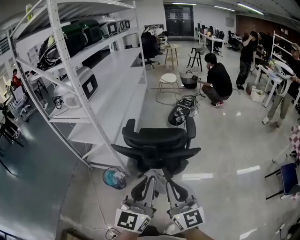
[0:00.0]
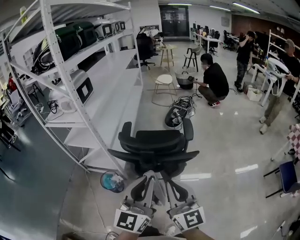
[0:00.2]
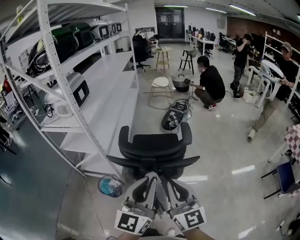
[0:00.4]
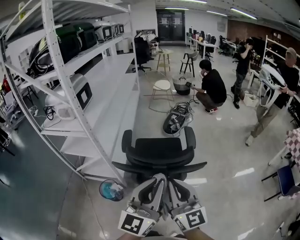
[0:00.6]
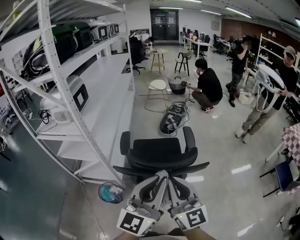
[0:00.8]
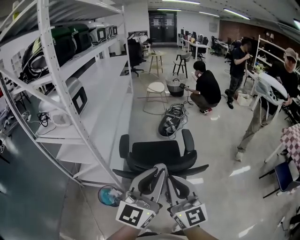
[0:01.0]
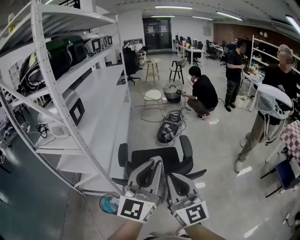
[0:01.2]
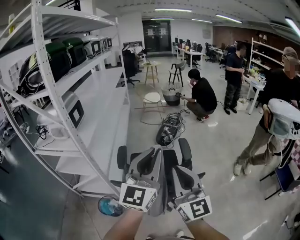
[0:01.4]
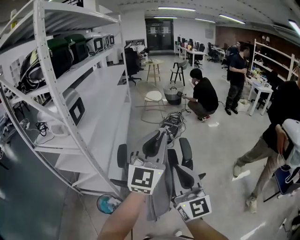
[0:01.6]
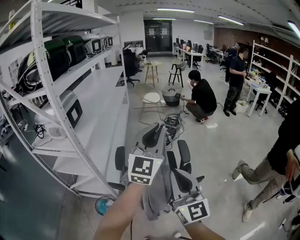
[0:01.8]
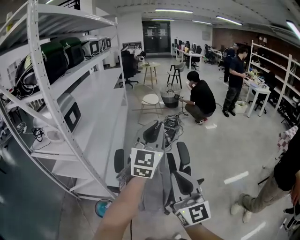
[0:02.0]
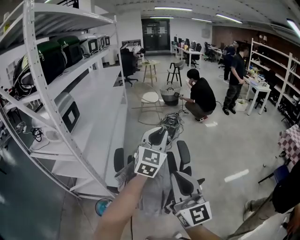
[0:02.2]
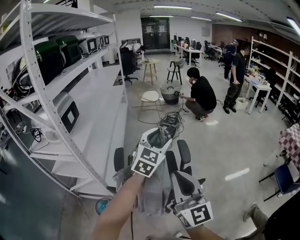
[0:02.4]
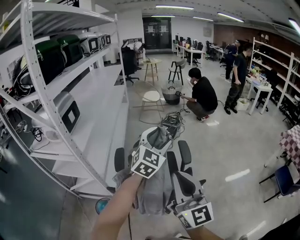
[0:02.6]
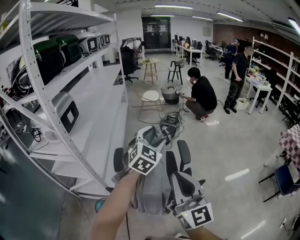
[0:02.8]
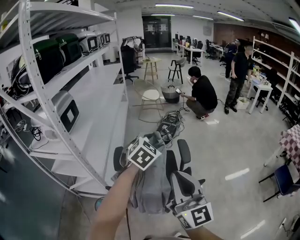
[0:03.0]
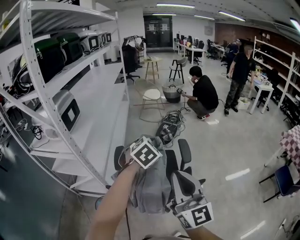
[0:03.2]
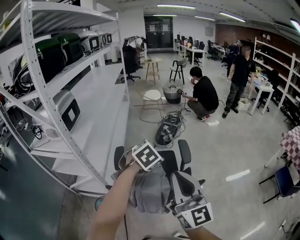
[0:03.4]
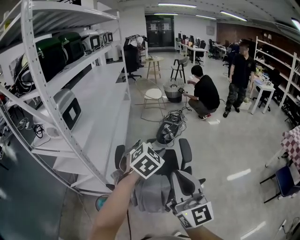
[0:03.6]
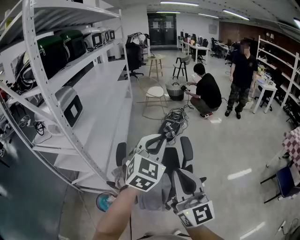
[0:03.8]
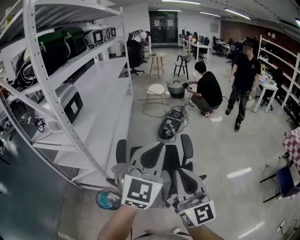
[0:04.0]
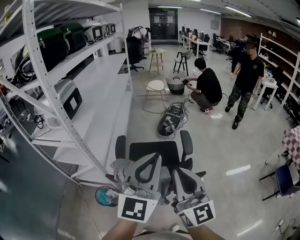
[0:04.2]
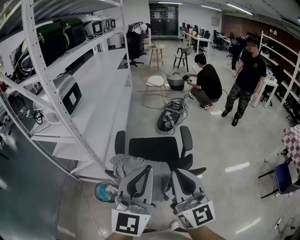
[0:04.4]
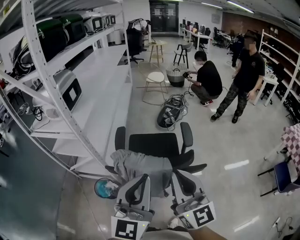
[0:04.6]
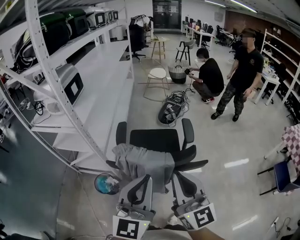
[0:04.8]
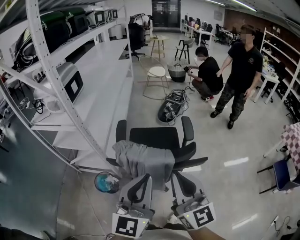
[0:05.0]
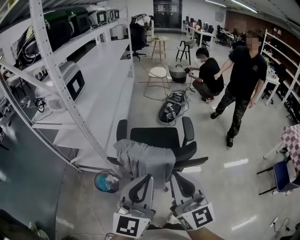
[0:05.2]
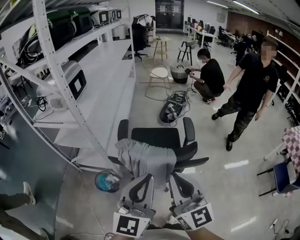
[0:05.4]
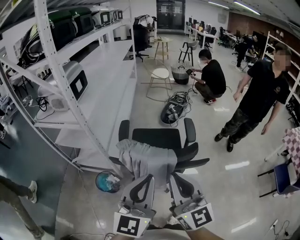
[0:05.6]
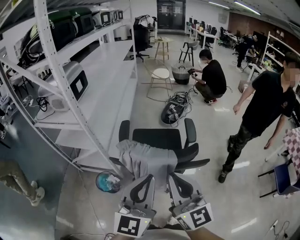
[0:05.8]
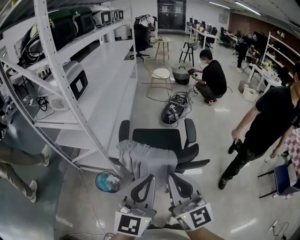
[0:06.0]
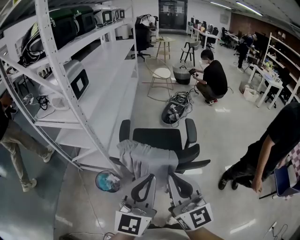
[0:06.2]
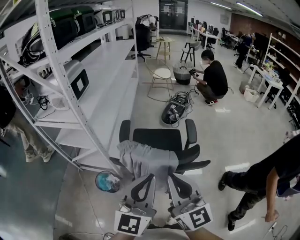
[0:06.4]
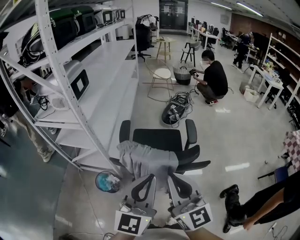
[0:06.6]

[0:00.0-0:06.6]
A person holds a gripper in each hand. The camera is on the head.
0:00.0 to 0:01.6: The two grippers go approximately 25 cm forward and upward.
0:01.6 to 0:03.2: The left gripper is displaced downward and forward by roughly 20 cm, points its fingers some 60 degrees further downward, and opens up.
0:03.2 to 0:05.0: The right gripper shifts approximately 10 cm backward. Meanwhile the left gripper moves backward, approximately 25 cm, angles its fingers upward, by roughly 50 degrees, and closes its fingers.
0:05.0 to 0:06.6: The grippers stay close to where they were, moving slightly.

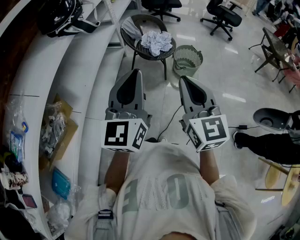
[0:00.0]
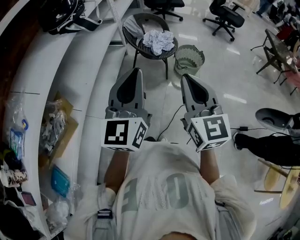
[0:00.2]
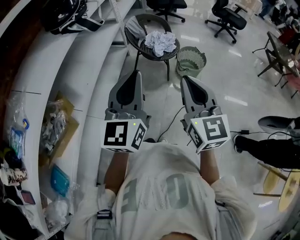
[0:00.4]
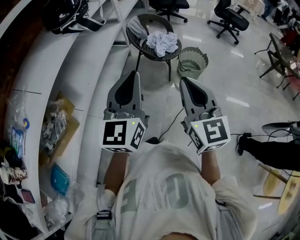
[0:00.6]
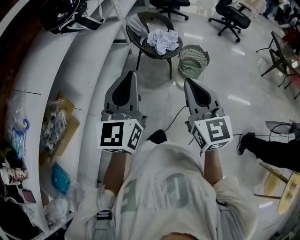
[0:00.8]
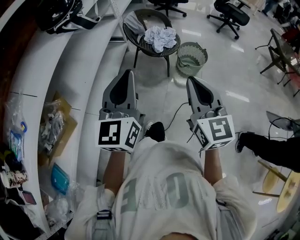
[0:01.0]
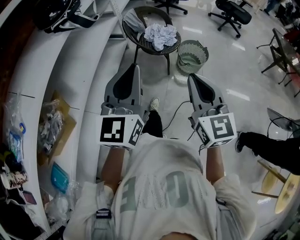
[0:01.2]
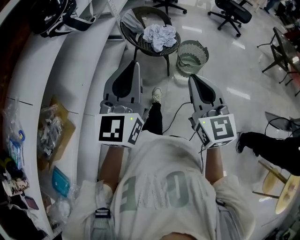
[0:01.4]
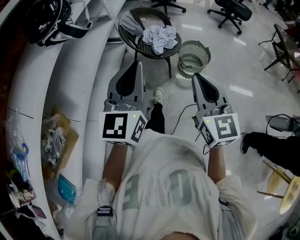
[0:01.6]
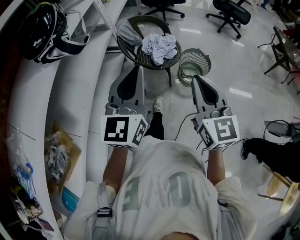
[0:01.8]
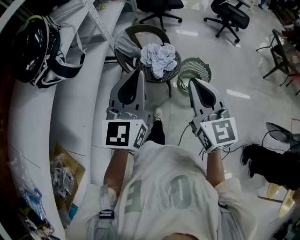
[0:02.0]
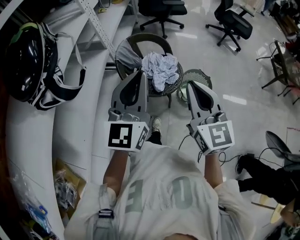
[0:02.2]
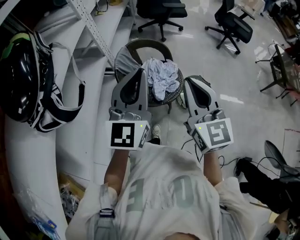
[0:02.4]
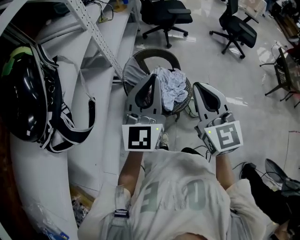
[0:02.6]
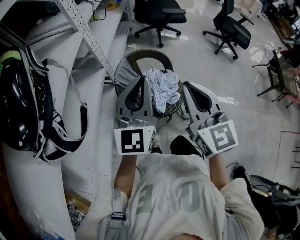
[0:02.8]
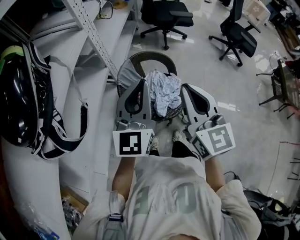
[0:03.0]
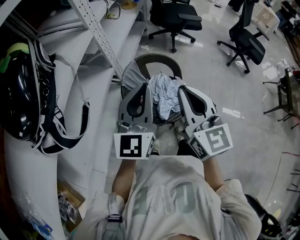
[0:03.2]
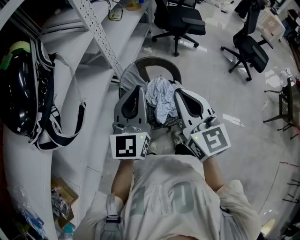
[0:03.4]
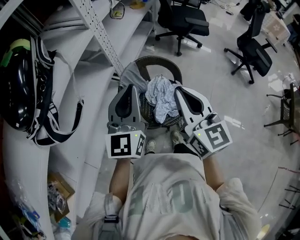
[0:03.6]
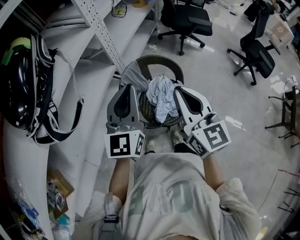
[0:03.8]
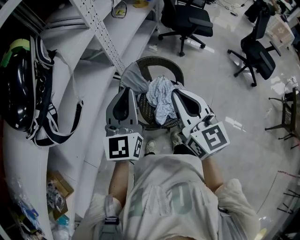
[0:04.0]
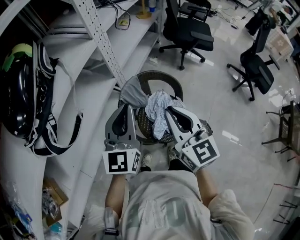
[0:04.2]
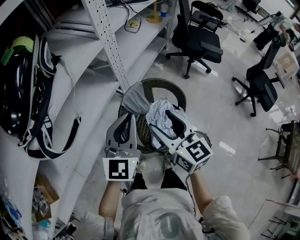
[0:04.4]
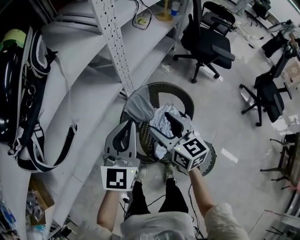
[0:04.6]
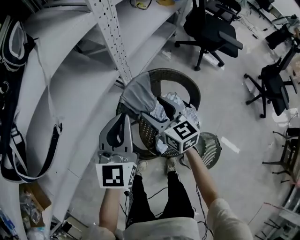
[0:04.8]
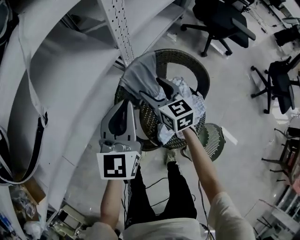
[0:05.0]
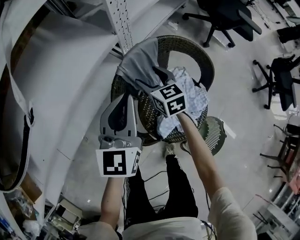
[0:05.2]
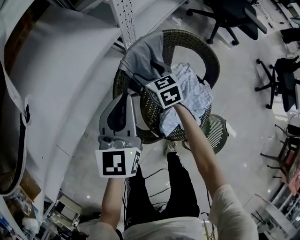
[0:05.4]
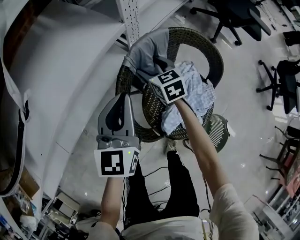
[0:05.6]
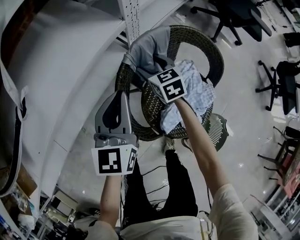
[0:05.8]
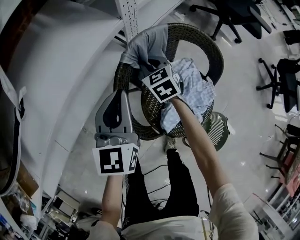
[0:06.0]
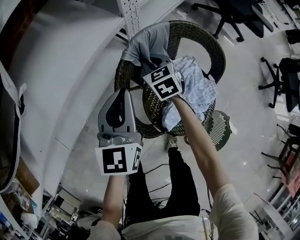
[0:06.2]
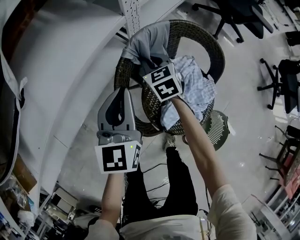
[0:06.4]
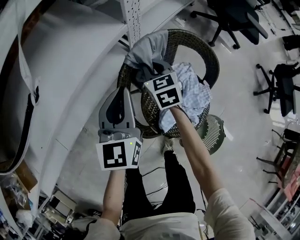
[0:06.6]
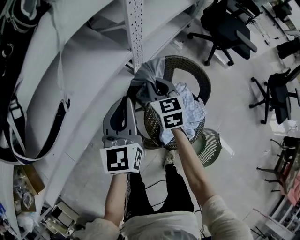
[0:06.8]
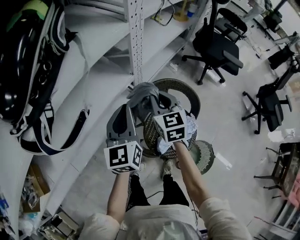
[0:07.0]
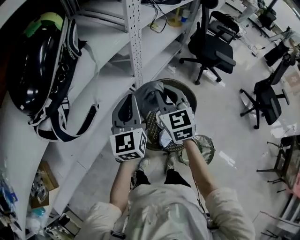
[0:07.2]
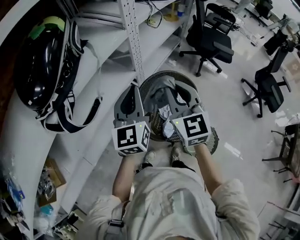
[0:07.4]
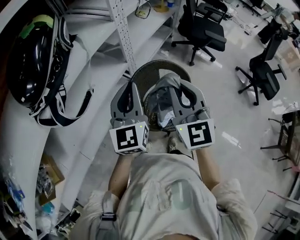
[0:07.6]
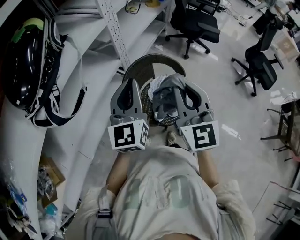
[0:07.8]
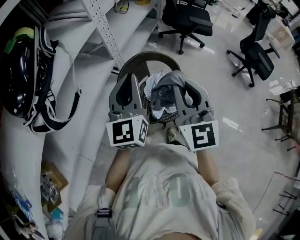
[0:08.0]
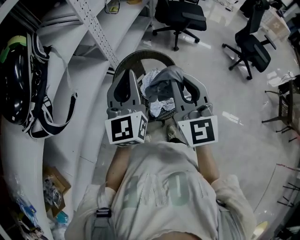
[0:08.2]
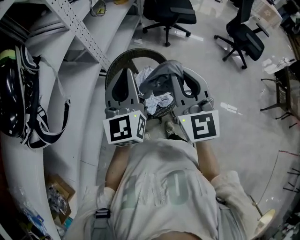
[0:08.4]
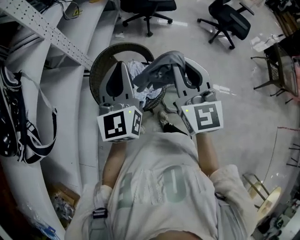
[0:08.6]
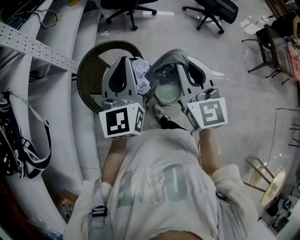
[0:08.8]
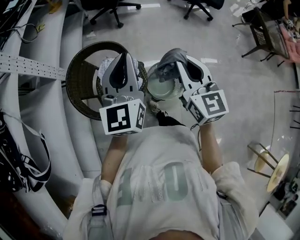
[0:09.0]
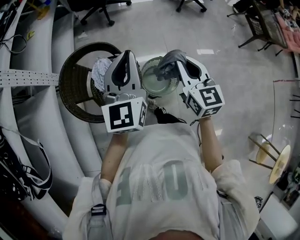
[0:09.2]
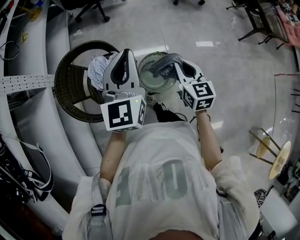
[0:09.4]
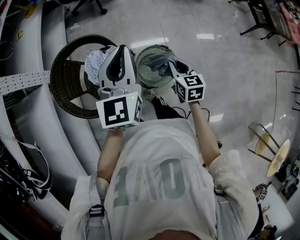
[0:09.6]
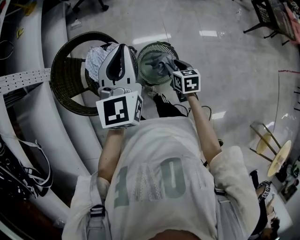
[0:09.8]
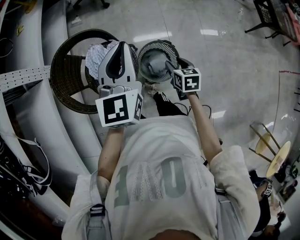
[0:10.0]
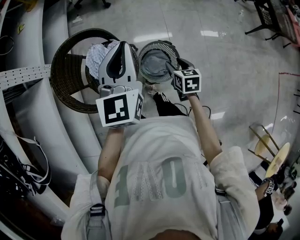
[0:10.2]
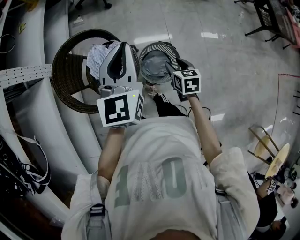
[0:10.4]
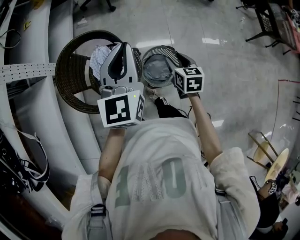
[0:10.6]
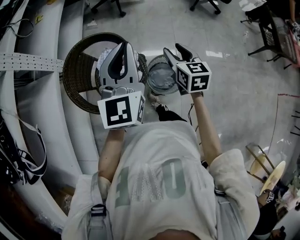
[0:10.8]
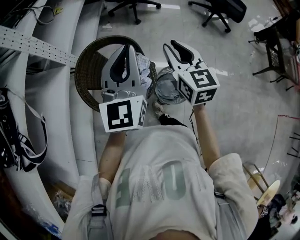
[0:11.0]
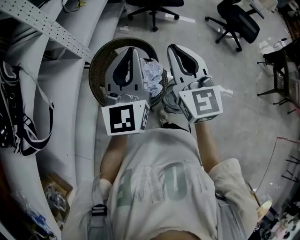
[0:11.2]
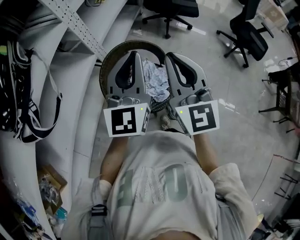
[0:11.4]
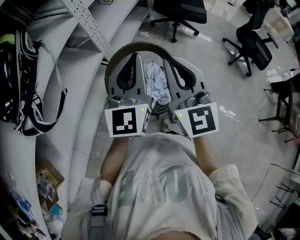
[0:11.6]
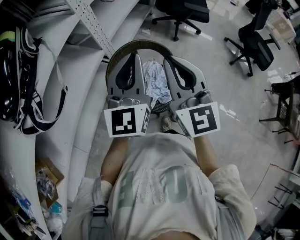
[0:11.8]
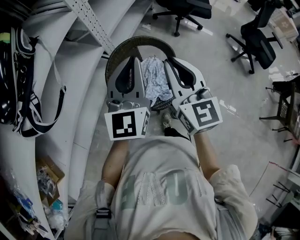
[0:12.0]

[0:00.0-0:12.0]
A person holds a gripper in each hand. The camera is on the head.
0:00.0 to 0:01.6: The left gripper heads forward, covering some 15 cm, while the right gripper moves forward and to the right, about 15 cm.
0:01.6 to 0:03.0: The pair of grippers is taken forward, approximately 50 cm.
0:03.0 to 0:04.4: The left gripper moves forward and downward, approximately 10 cm. Meanwhile the right gripper moves downward and forward, approximately 15 cm, turns by about 30 degrees, and opens up.
0:04.4 to 0:06.0: The left gripper moves downward, about 30 cm, and swivels approximately 20 degrees. Meanwhile the right gripper heads downward and forward, covering approximately 50 cm, tilts its fingers approximately 30 degrees downward, and closes up.
0:06.0 to 0:07.6: The left gripper moves upward, approximately 35 cm. The right gripper heads upward and backward, covering about 60 cm, and tilts its fingers some 40 degrees upward.
0:07.6 to 0:09.0: The left gripper ends up some 30 cm from where it was, and swivels about 40 degrees. Meanwhile the right gripper changes place by roughly 35 cm, and turns by about 40 degrees.
0:09.0 to 0:10.4: The right gripper is displaced downward by about 30 cm, points its fingers some 40 degrees further downward, and opens, while the left gripper shifts about 10 cm to the right and downward.
0:10.4 to 0:12.0: The left gripper shifts by roughly 30 cm, and changes its angle by approximately 30 degrees. The right gripper goes roughly 35 cm upward, points its fingers approximately 40 degrees further upward, and closes.

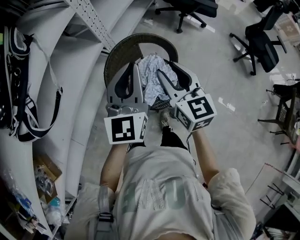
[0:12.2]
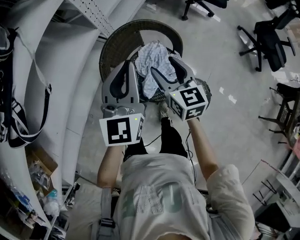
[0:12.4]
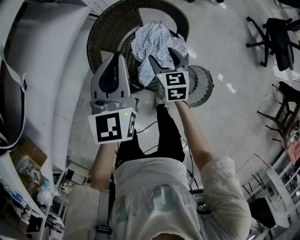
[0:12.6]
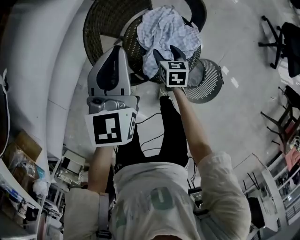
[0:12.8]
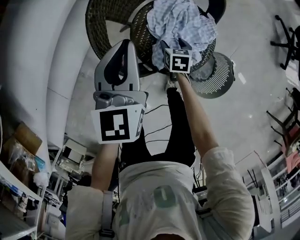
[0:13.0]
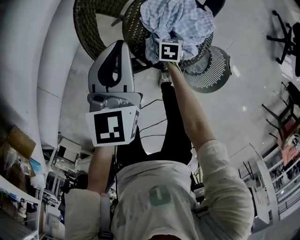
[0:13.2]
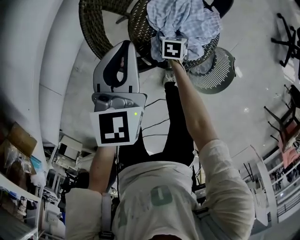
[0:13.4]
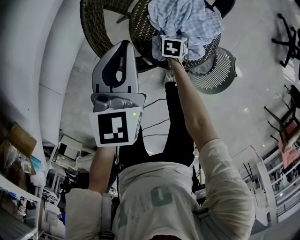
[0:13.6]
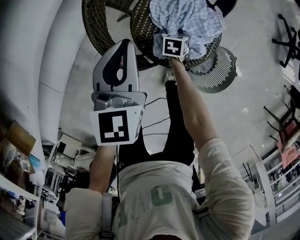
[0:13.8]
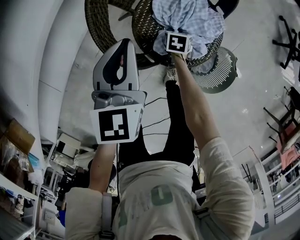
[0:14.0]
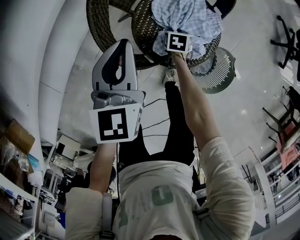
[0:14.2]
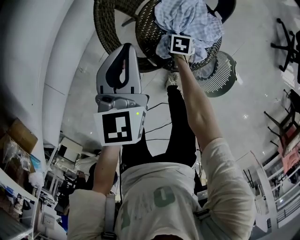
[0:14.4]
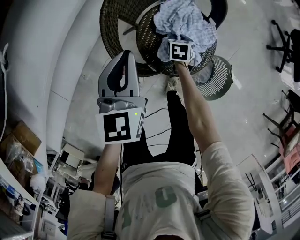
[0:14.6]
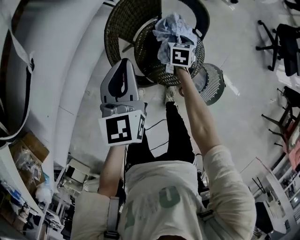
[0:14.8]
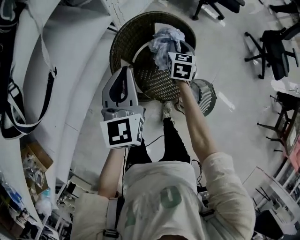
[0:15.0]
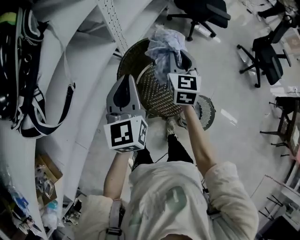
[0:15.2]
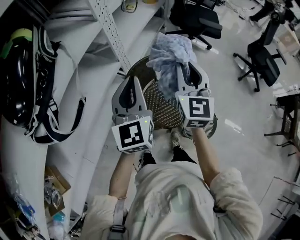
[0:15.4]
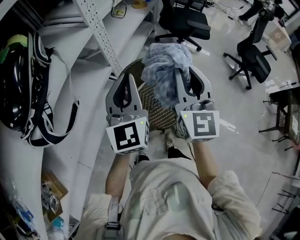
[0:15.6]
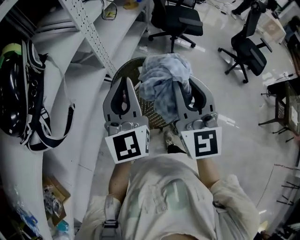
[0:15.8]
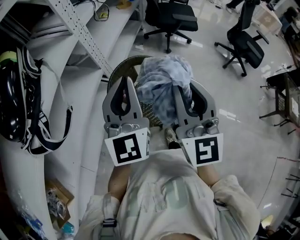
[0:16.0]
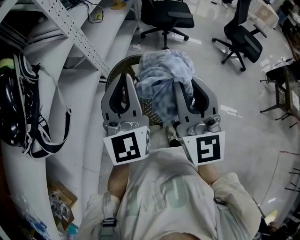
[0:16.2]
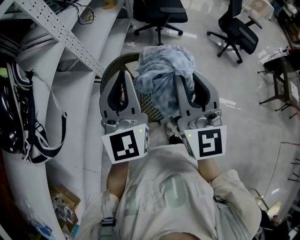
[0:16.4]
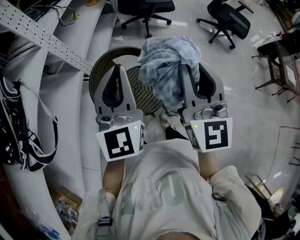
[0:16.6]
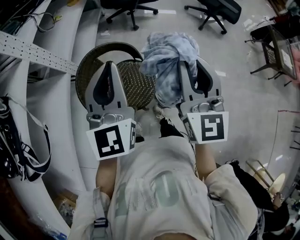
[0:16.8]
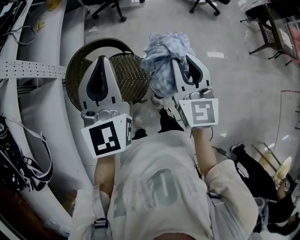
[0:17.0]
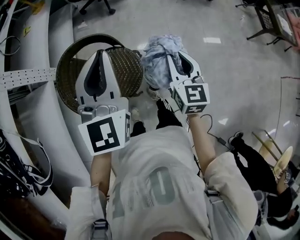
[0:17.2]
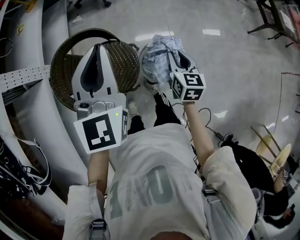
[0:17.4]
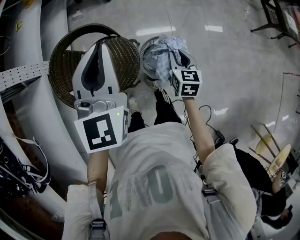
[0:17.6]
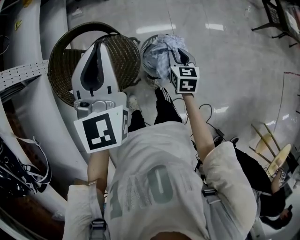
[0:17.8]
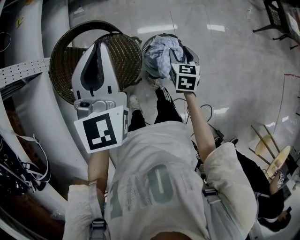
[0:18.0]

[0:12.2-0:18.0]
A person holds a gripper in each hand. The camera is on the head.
0:12.2 to 0:13.6: The left gripper heads downward, covering roughly 30 cm, and rotates approximately 30 degrees. The right gripper travels downward by some 60 cm, points its fingers roughly 50 degrees further downward, and opens its fingers.
0:13.6 to 0:15.0: The right gripper shifts roughly 35 cm upward, rotates some 30 degrees, and closes; the left gripper goes about 20 cm upward.
0:15.0 to 0:16.6: The right gripper is displaced upward and backward by some 50 cm, and tips its fingers upward by roughly 40 degrees; the left gripper travels upward and to the right by roughly 25 cm, and rotates about 30 degrees.
0:16.6 to 0:18.0: The right gripper goes some 50 cm downward and to the right, tilts its fingers roughly 50 degrees downward, and opens up, while the left gripper goes roughly 20 cm to the right, downward and forward, and changes its angle by approximately 20 degrees.
